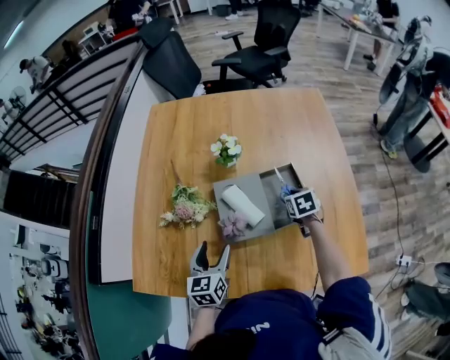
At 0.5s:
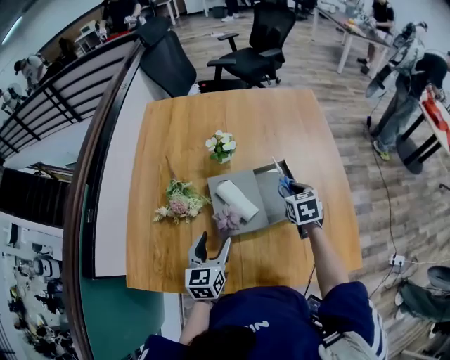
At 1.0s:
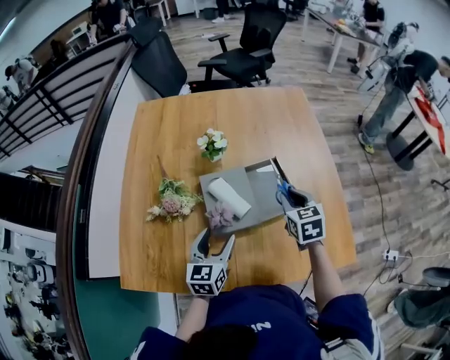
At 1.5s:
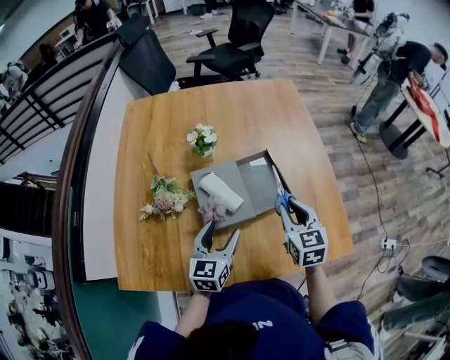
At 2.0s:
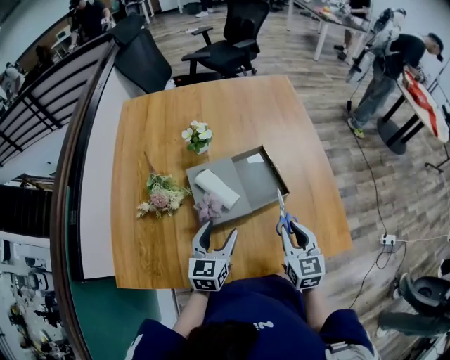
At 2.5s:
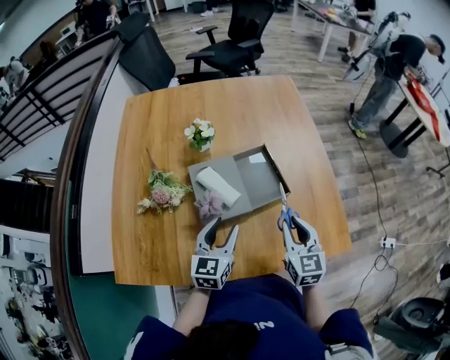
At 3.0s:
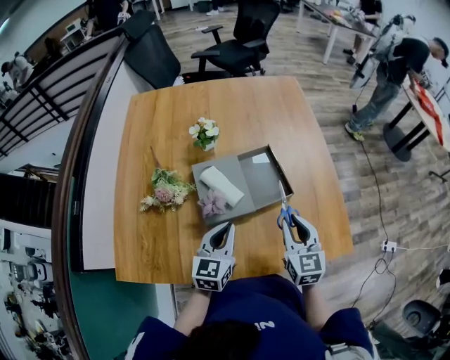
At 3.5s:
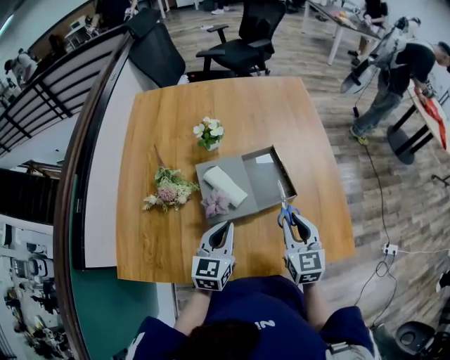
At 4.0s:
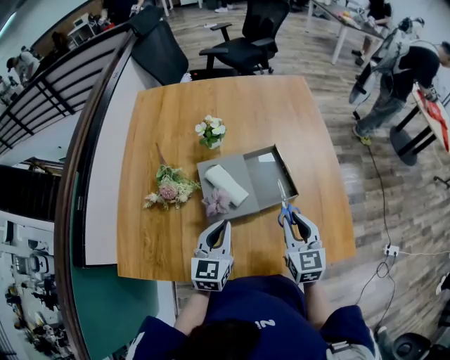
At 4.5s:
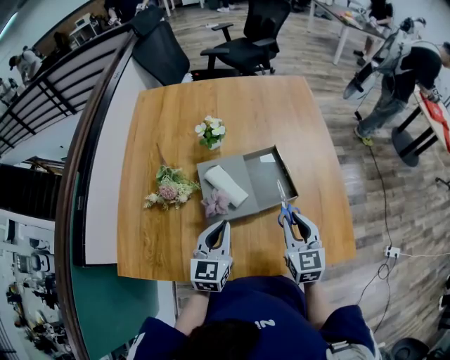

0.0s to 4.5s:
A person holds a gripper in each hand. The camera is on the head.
0.0s to 2.0s: The right gripper is displaced backward and upward by approximately 25 cm, and points its fingers approximately 30 degrees further upward, while the left gripper goes approximately 10 cm to the right.
2.0s to 4.5s: The left gripper closes.

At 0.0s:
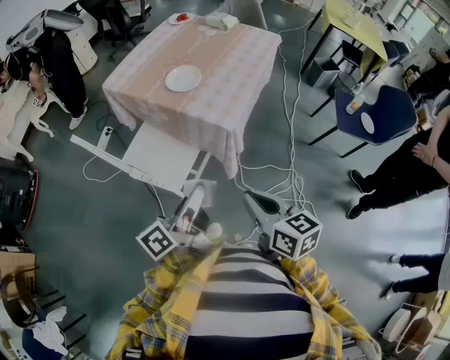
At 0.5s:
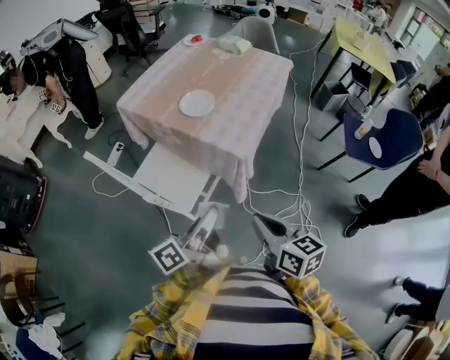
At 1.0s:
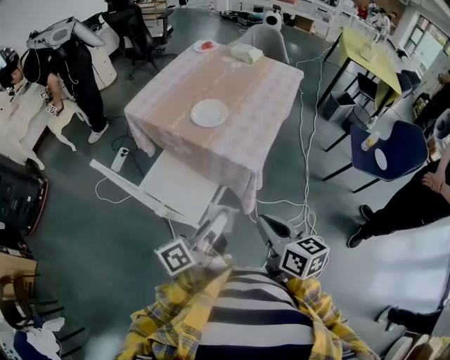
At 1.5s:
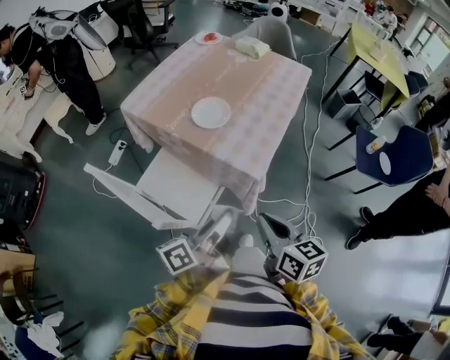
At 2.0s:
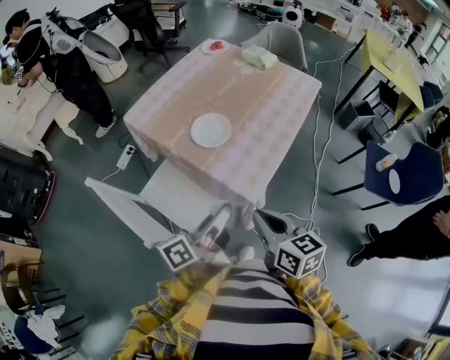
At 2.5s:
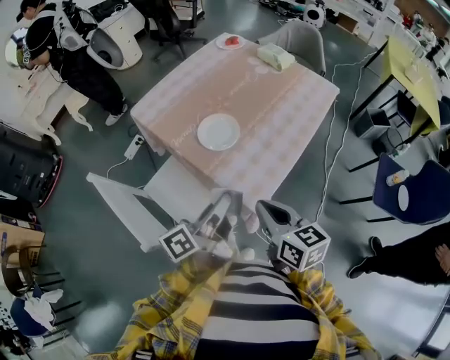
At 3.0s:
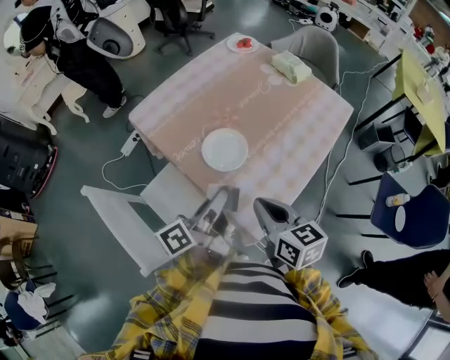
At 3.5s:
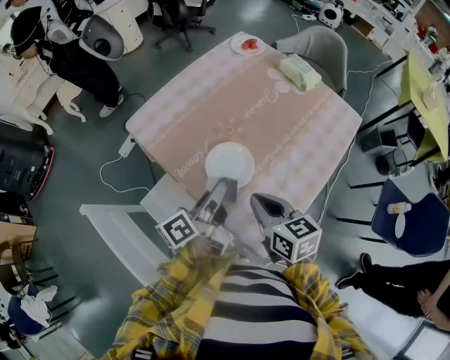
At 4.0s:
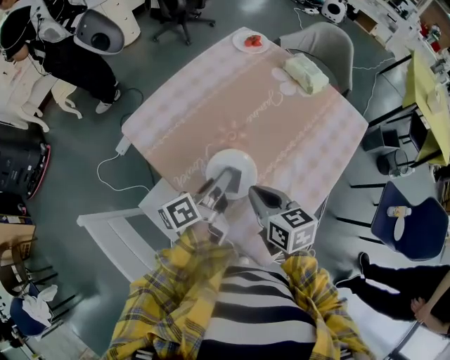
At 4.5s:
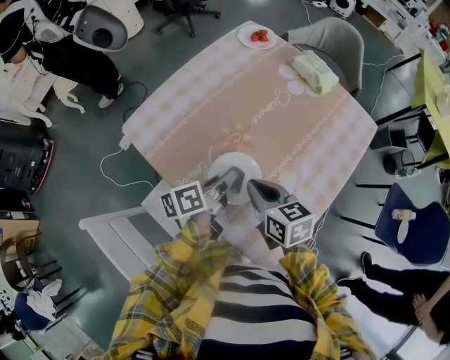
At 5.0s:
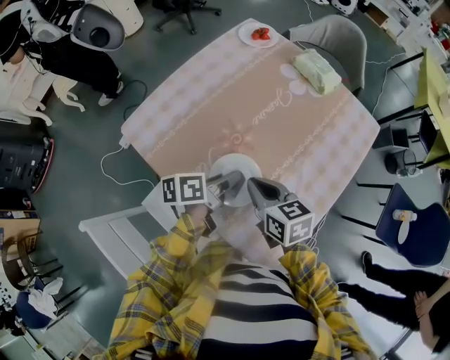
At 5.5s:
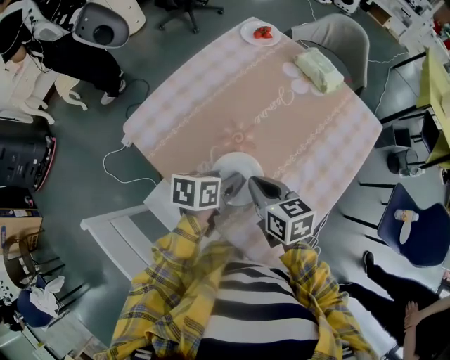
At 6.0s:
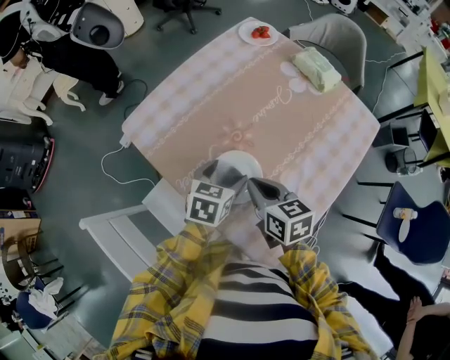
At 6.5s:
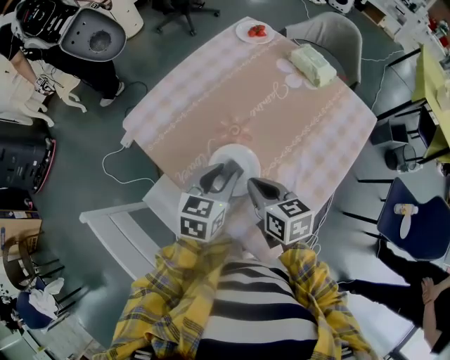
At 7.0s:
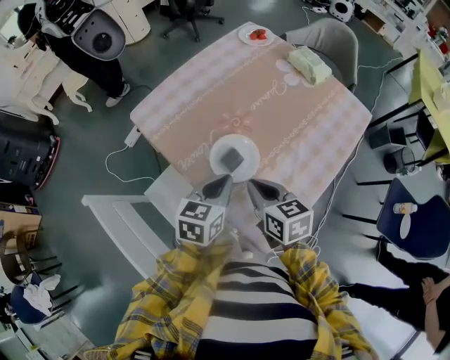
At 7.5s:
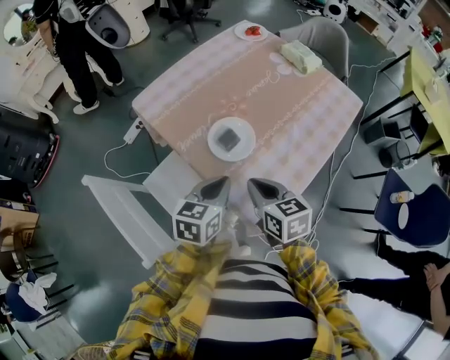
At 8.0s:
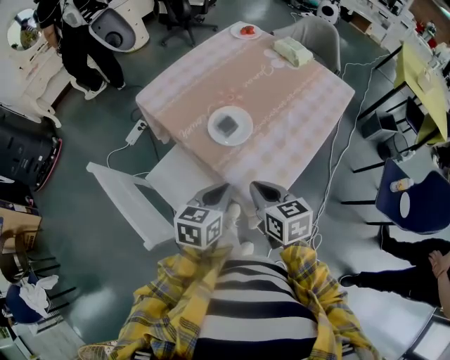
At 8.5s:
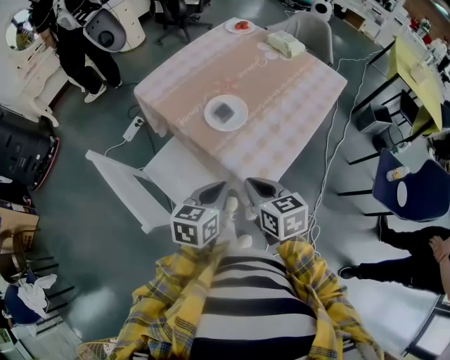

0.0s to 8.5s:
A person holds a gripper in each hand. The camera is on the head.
0.0s to 2.0s: Both grippers travel together forward, some 20 cm.
2.0s to 4.0s: The two grippers go roughly 30 cm forward.
4.0s to 6.5s: The left gripper rotates around the line of its fingers by about 50 degrees, clockwise from behind, and opens, then closes once more.
6.5s to 8.5s: Both grippers move backward, some 25 cm. The left gripper closes its fingers.

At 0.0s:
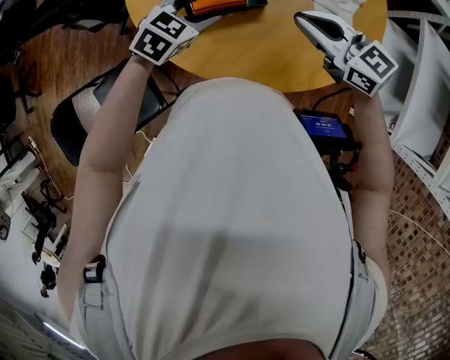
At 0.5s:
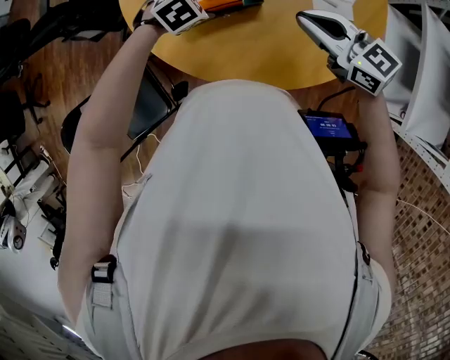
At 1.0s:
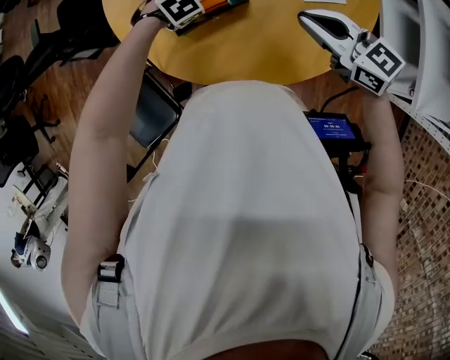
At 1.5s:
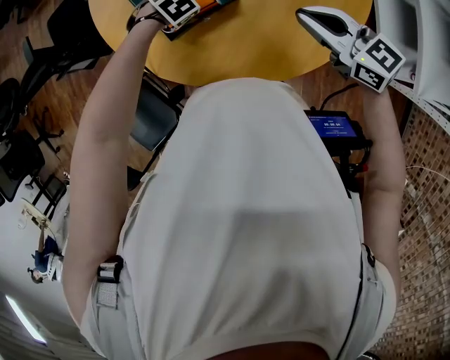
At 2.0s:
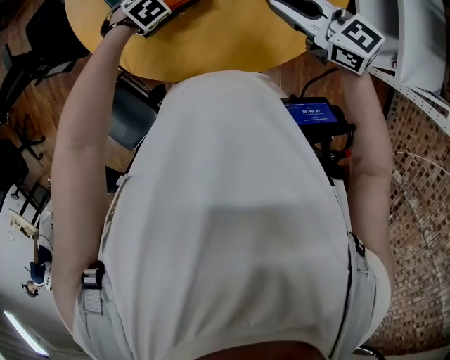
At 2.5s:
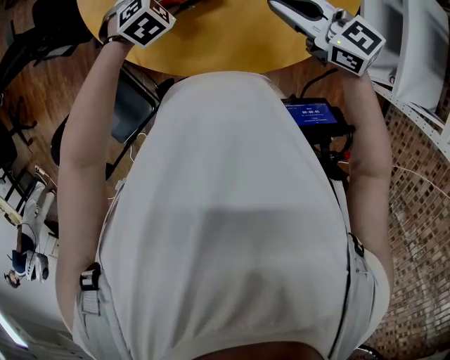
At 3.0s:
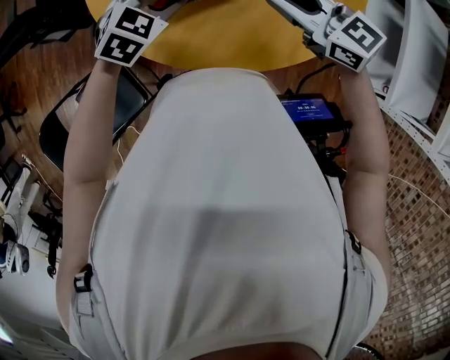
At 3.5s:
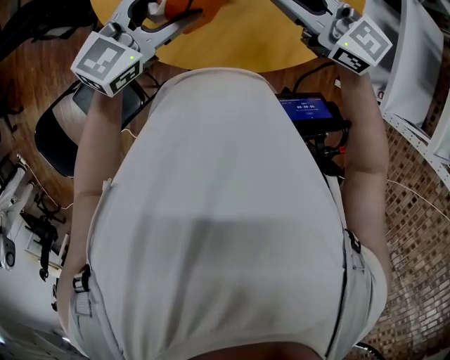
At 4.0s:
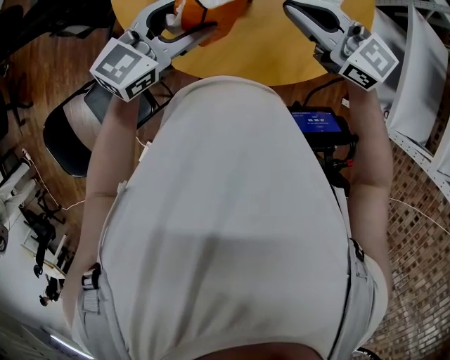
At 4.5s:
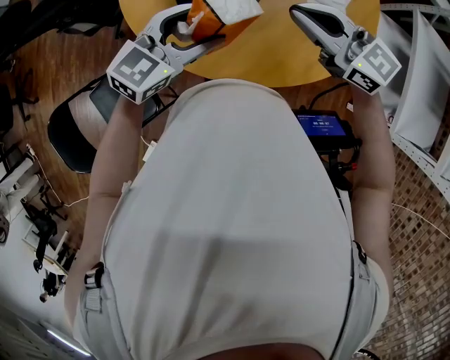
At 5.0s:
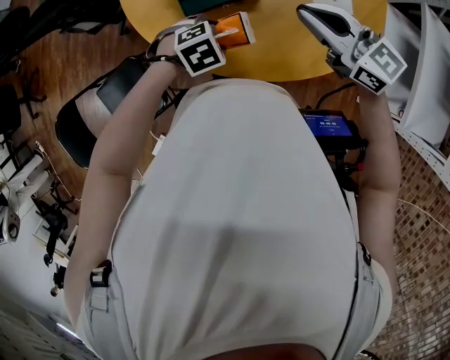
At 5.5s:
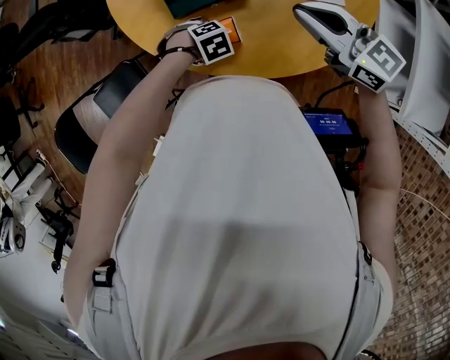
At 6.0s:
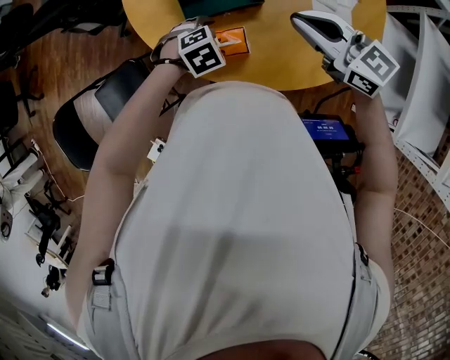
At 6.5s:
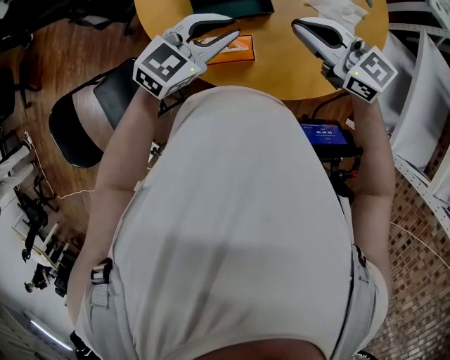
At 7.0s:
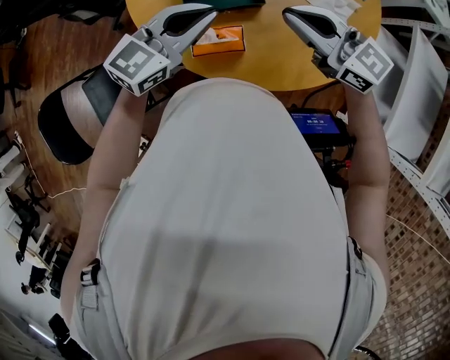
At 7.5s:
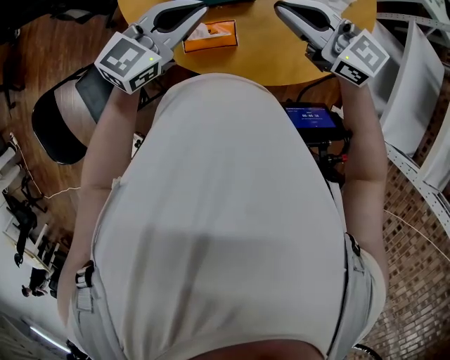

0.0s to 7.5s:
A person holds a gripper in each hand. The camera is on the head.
0.0s to 2.0s: The right gripper shifts by approximately 5 cm, while the left gripper travels downward by approximately 15 cm, and rotates some 40 degrees.
2.0s to 4.0s: The left gripper goes roughly 25 cm upward, and angles its fingers upward, by about 60 degrees, while the right gripper travels upward by some 5 cm.
4.0s to 5.5s: The left gripper moves downward, about 30 cm, and tilts its fingers roughly 70 degrees downward.
5.5s to 7.5s: The right gripper changes place by some 5 cm; the left gripper goes approximately 30 cm upward, points its fingers some 70 degrees further upward, and closes.

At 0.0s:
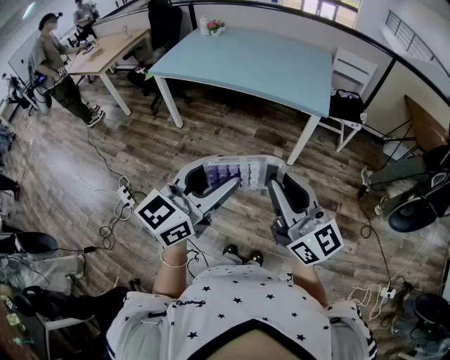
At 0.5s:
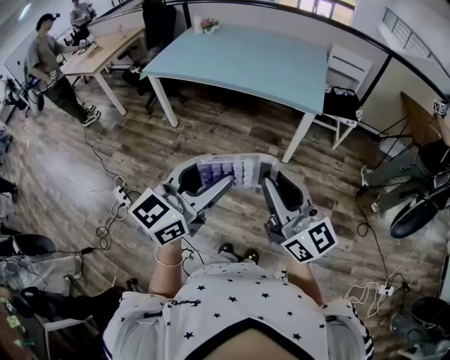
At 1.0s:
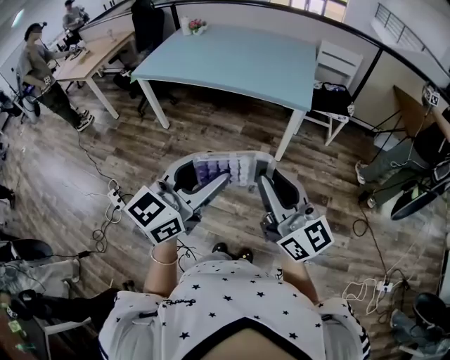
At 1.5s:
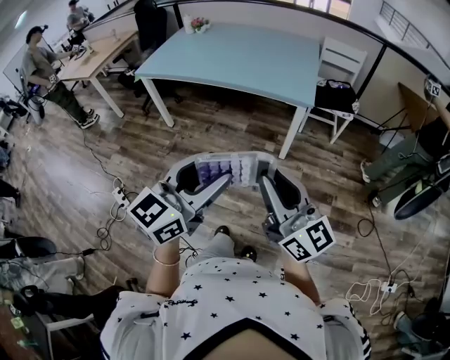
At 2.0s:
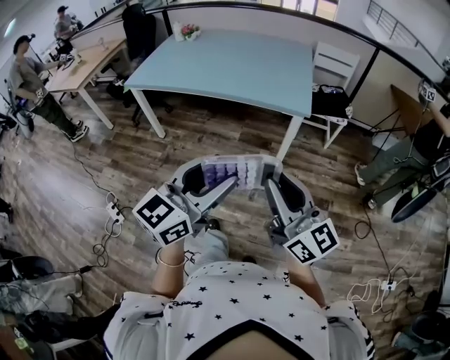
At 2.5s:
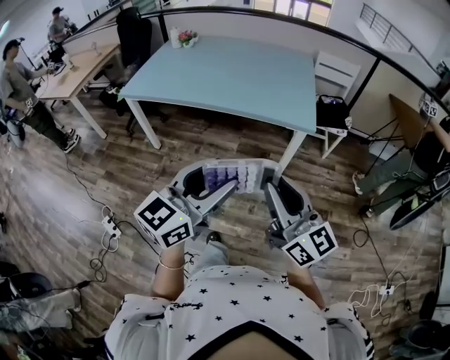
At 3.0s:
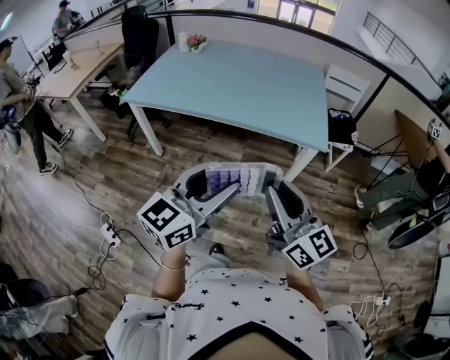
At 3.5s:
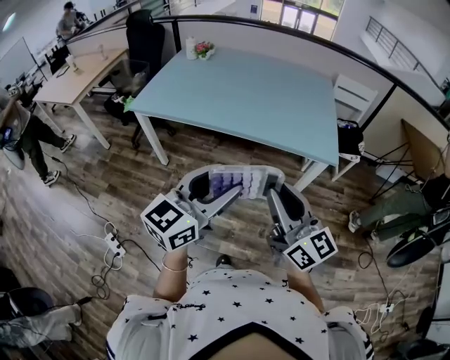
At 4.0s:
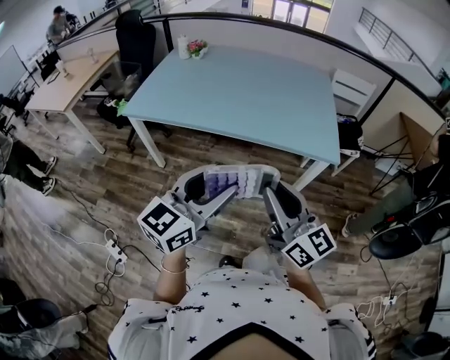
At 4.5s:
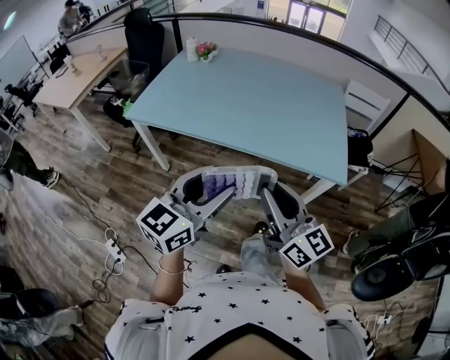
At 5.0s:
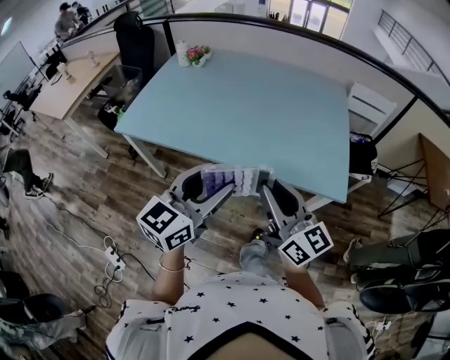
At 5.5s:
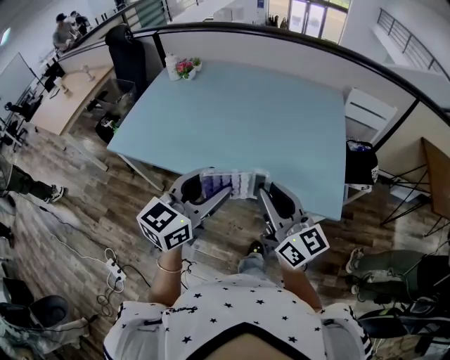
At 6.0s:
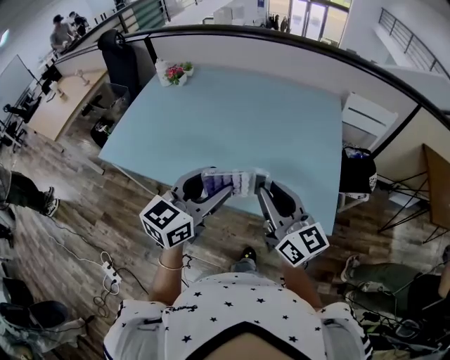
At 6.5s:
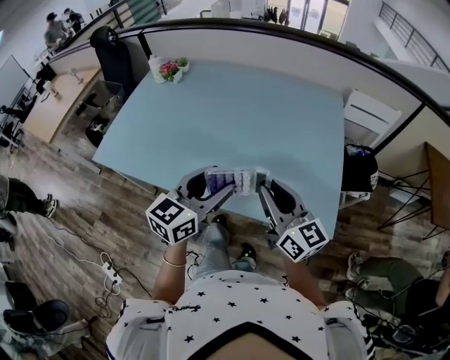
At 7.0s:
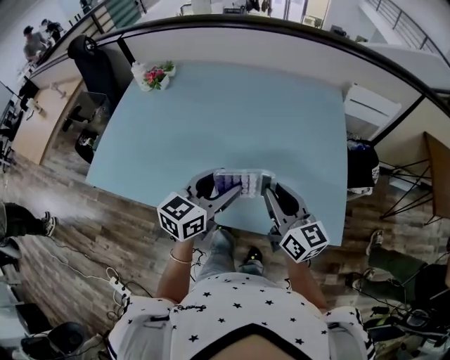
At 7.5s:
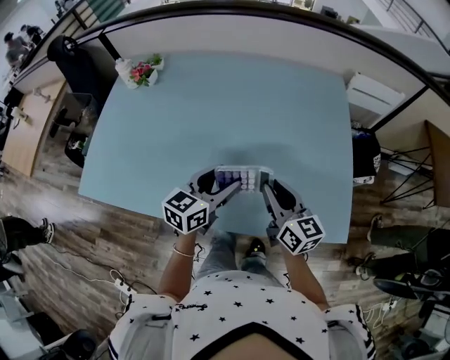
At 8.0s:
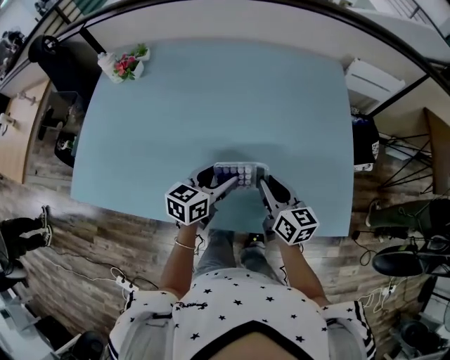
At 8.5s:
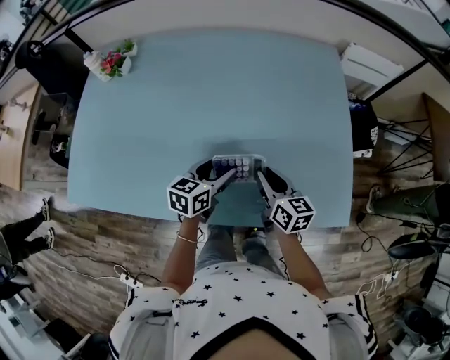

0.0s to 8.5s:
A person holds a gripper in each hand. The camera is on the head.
0.0s to 2.0s: Both grippers move forward and to the right, some 10 cm.
2.0s to 4.0s: The two grippers go about 30 cm forward and to the left.
4.0s to 6.5s: The grippers both shift forward by approximately 35 cm.
6.5s to 8.5s: The grippers both shift downward and forward by roughly 25 cm. The left gripper turns by about 30 degrees, while the right gripper turns by approximately 40 degrees.
